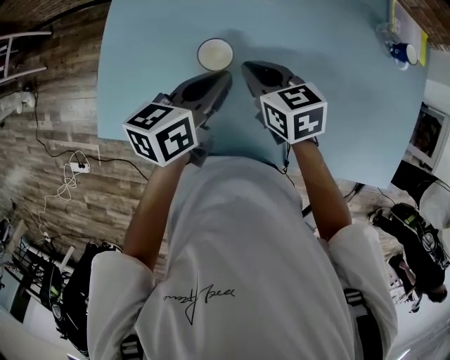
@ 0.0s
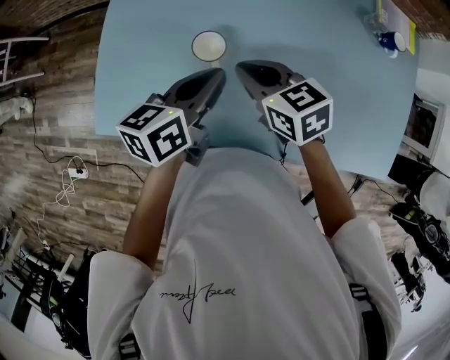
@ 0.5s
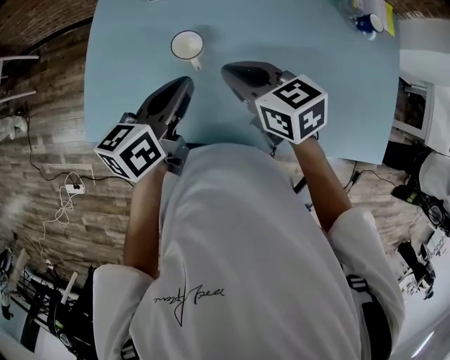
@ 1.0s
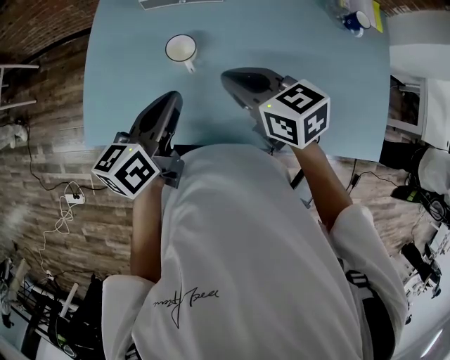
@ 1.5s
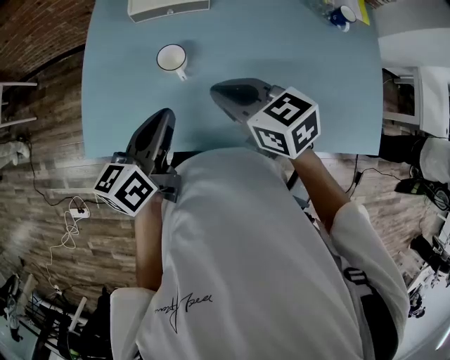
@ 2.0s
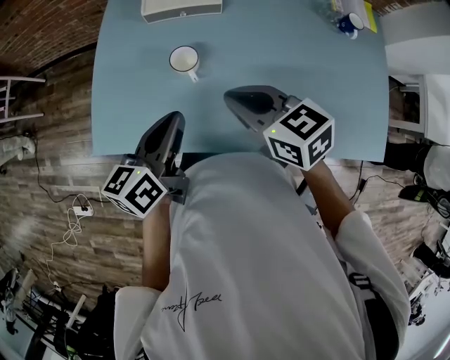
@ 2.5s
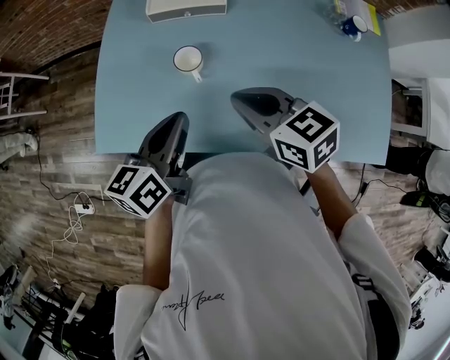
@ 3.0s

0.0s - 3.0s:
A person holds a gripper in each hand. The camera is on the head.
0.0s - 1.5s: The left gripper travels backward by approximately 5 cm. The right gripper moves upward and backward, about 10 cm.
1.5s - 3.0s: The grippers make only small movements.

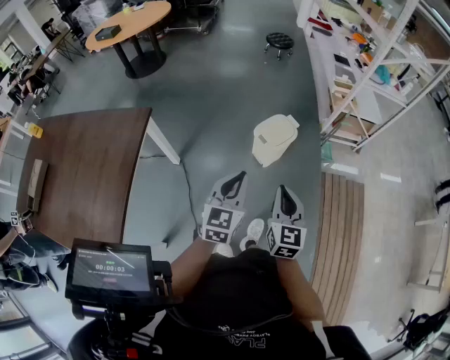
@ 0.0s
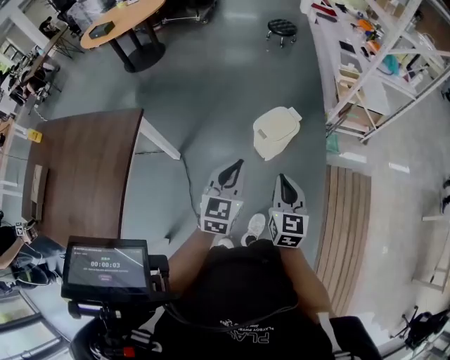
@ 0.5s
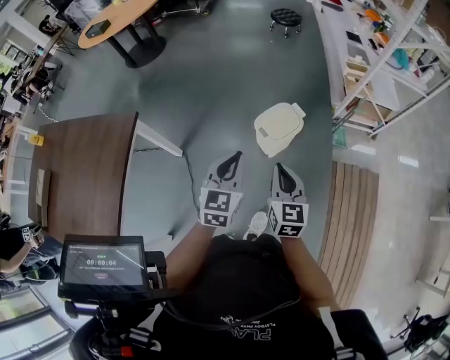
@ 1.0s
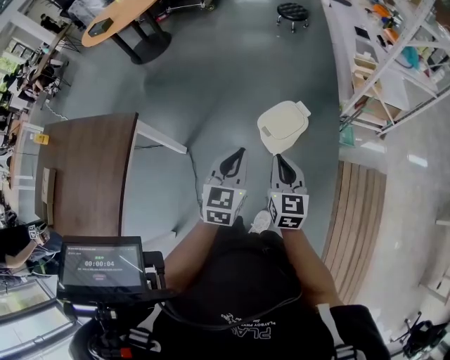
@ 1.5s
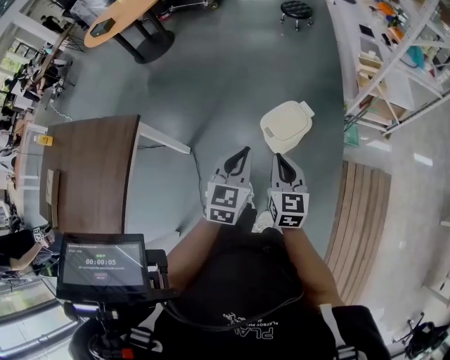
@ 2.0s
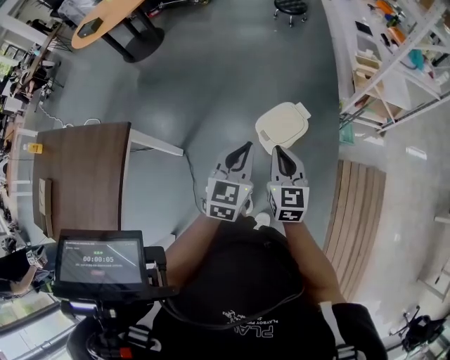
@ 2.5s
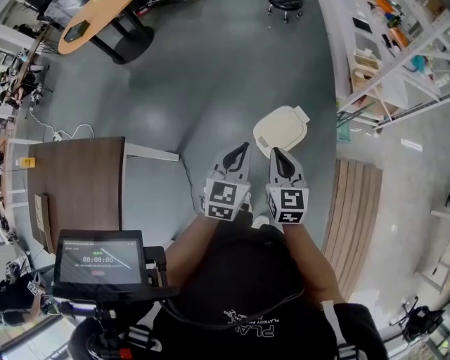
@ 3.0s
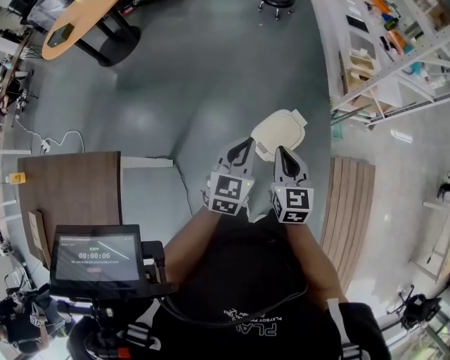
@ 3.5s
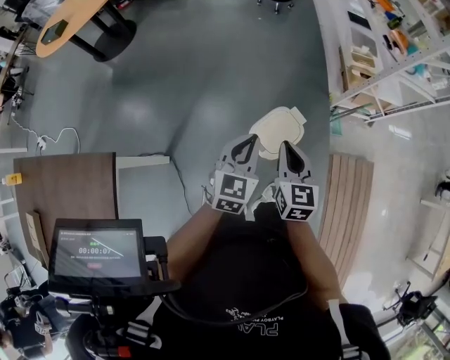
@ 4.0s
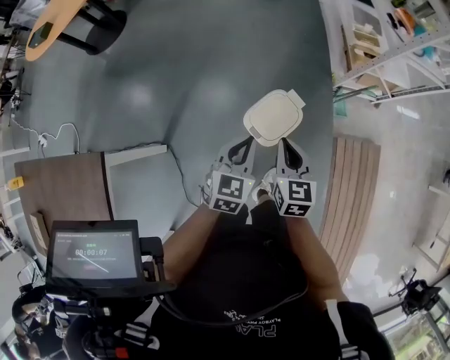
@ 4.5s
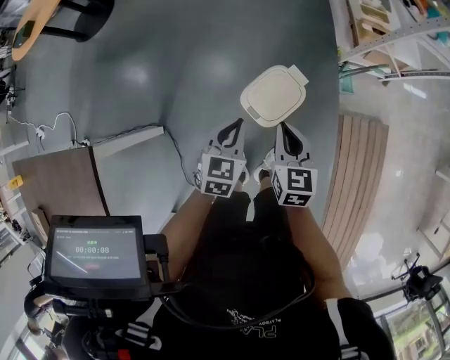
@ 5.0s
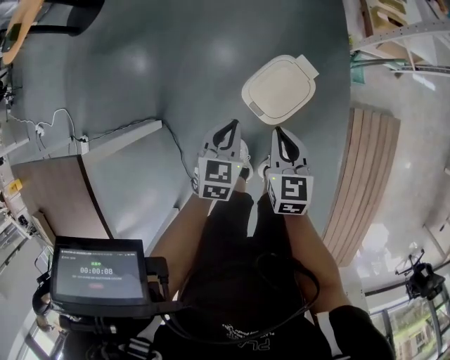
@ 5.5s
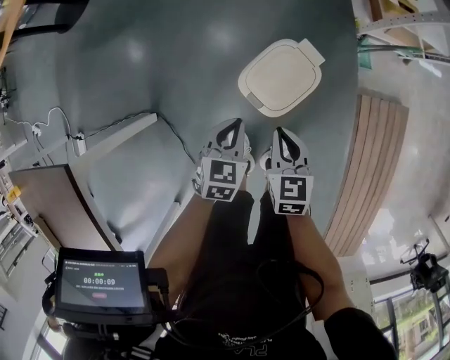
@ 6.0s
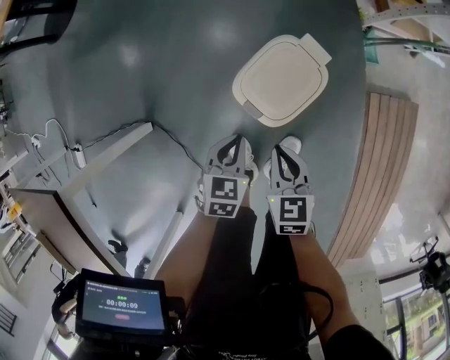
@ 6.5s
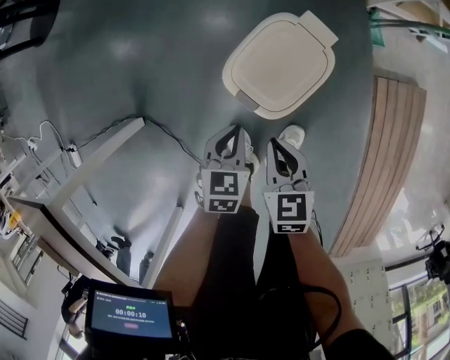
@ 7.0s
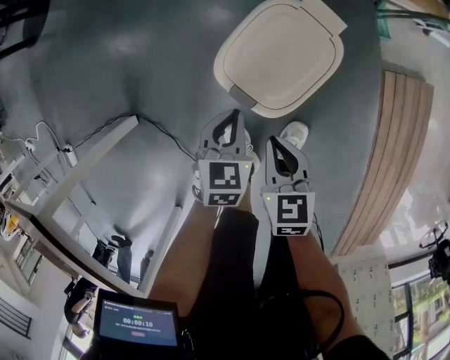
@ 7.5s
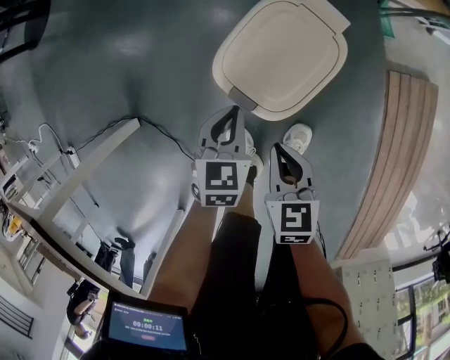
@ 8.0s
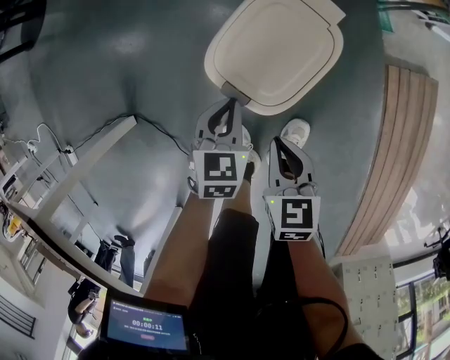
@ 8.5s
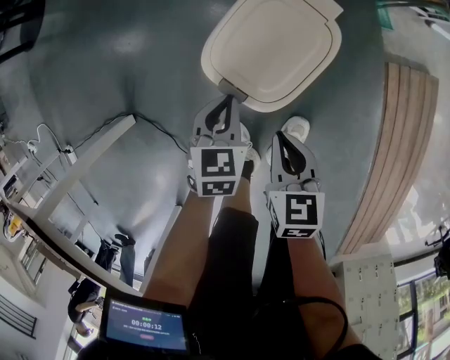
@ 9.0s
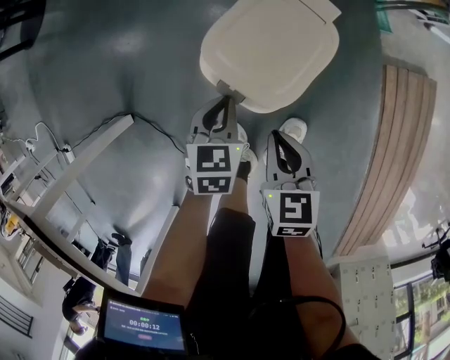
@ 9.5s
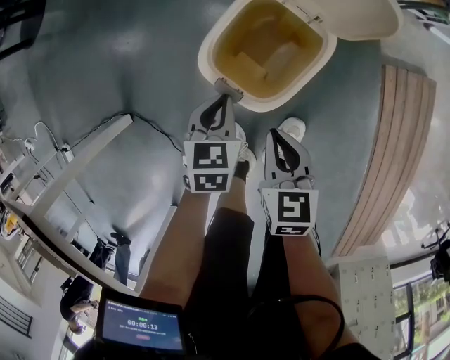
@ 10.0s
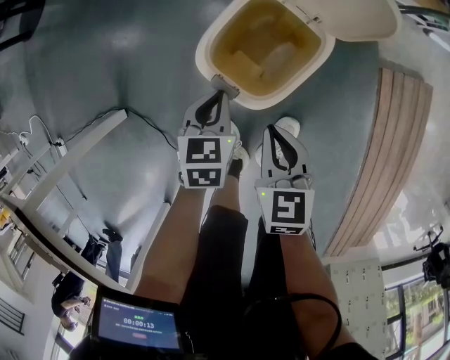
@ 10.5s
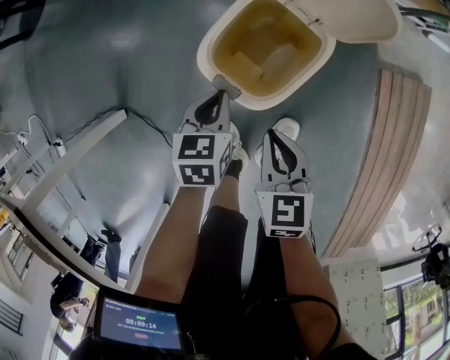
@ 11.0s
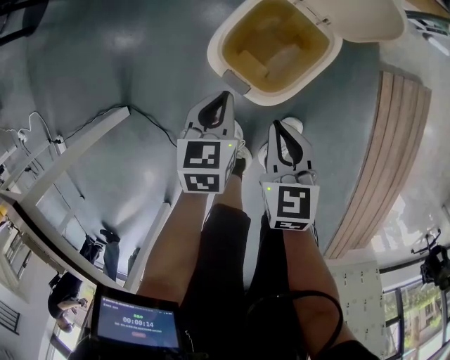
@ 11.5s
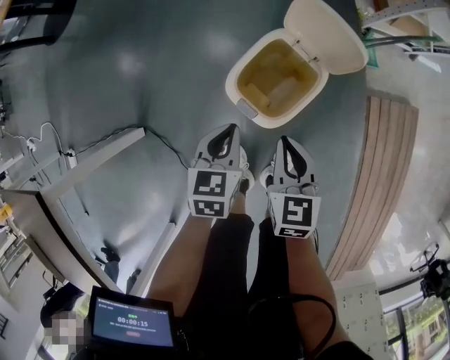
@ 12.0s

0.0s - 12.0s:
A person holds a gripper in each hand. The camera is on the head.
0.0s - 2.0s: The left gripper is displaced forward and to the right by approximately 25 cm. Meanwhile the right gripper goes approximately 25 cm forward.
2.0s - 4.0s: Both grippers move forward, some 20 cm.
4.0s - 6.0s: Both grippers move downward, roughly 30 cm. The left gripper turns by approximately 30 degrees.
6.0s - 8.0s: Both grippers move downward, approximately 20 cm.
8.0s - 10.0s: The grippers stay close to where they were, moving slightly.
10.0s - 12.0s: Both grippers travel together upward, roughly 10 cm.

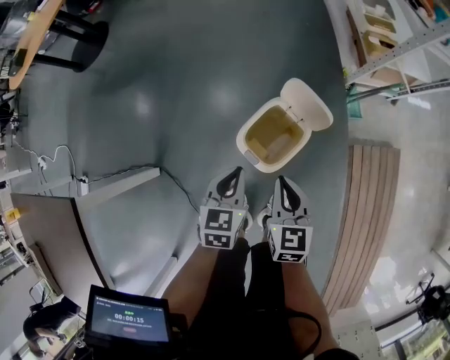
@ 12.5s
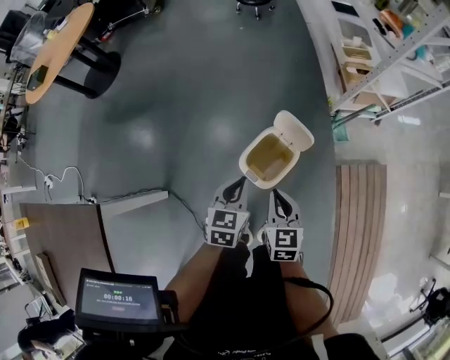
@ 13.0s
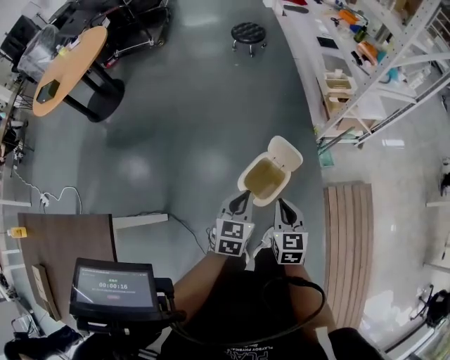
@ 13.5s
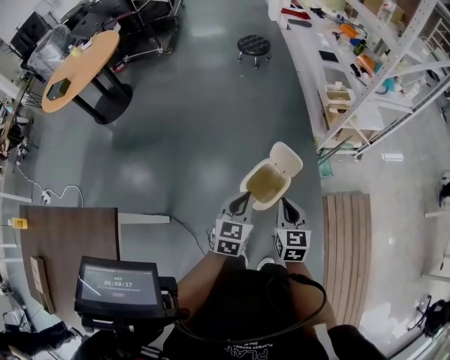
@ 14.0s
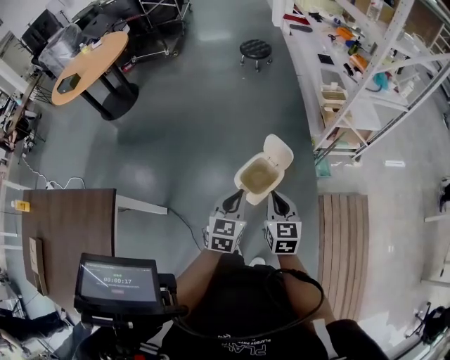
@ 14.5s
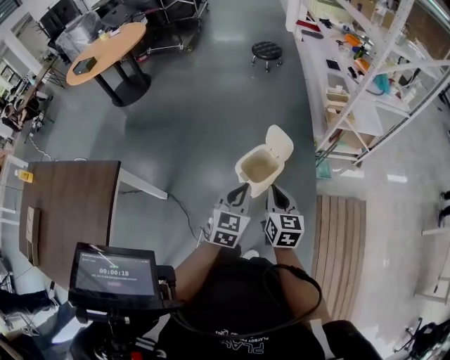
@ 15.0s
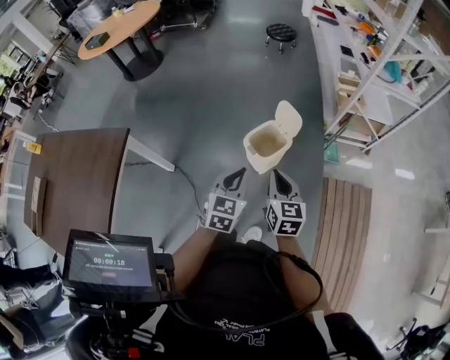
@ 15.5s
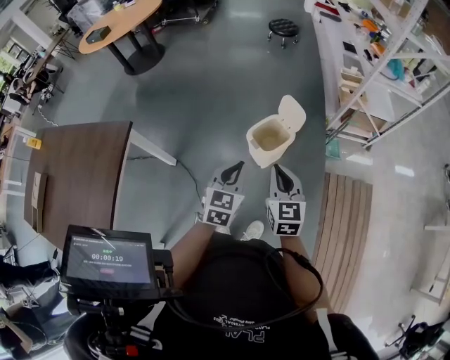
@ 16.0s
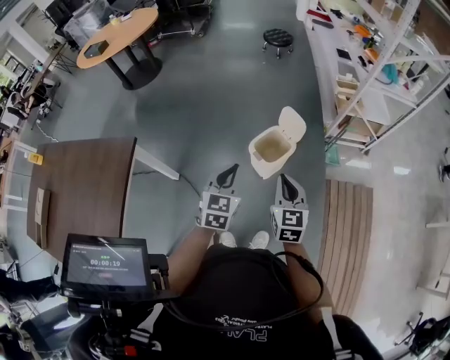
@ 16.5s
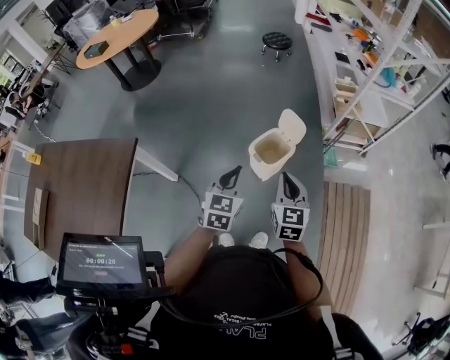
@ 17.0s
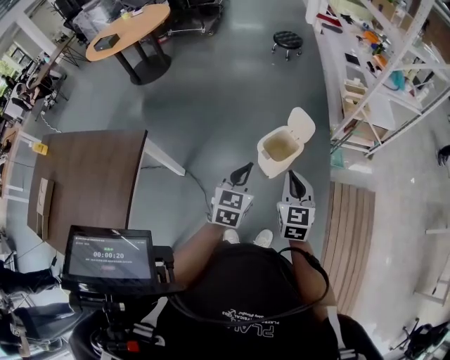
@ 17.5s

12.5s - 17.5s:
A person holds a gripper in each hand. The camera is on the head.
12.5s - 15.0s: The grippers both shift upward and backward by about 30 cm. The left gripper swivels about 20 degrees.
15.0s - 17.5s: The left gripper moves to the left and backward, some 10 cm, while the right gripper is displaced backward, to the left and upward by approximately 10 cm.

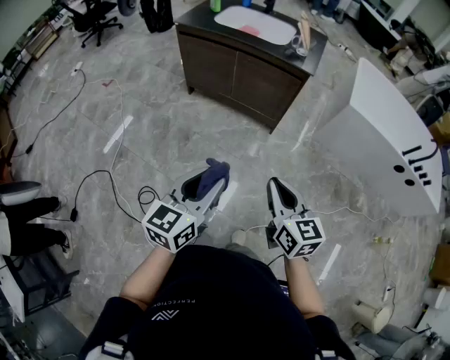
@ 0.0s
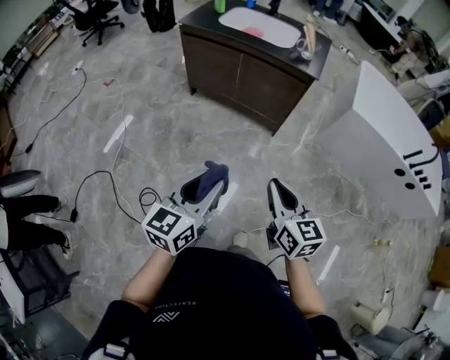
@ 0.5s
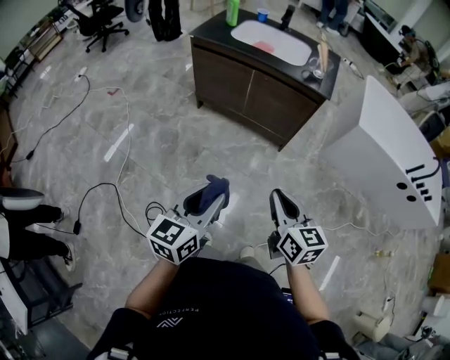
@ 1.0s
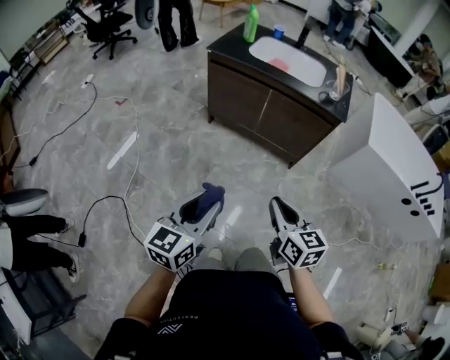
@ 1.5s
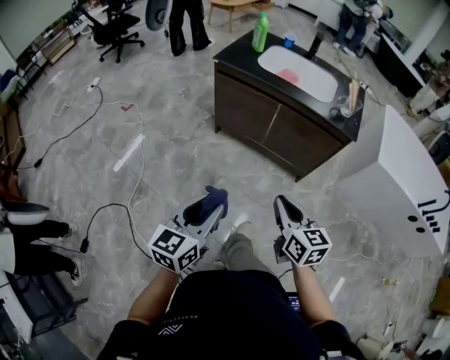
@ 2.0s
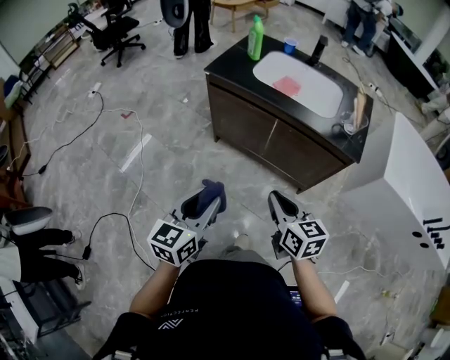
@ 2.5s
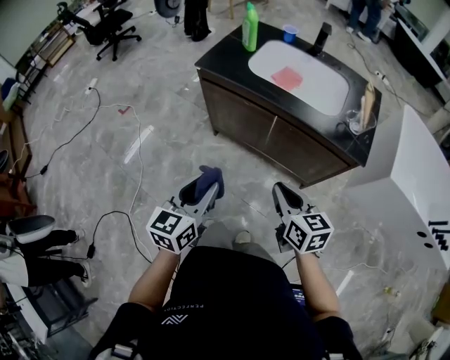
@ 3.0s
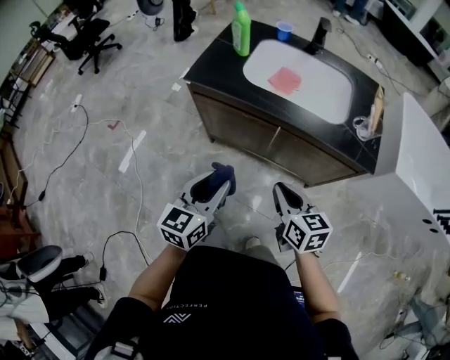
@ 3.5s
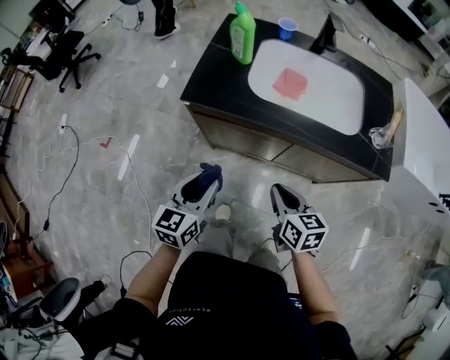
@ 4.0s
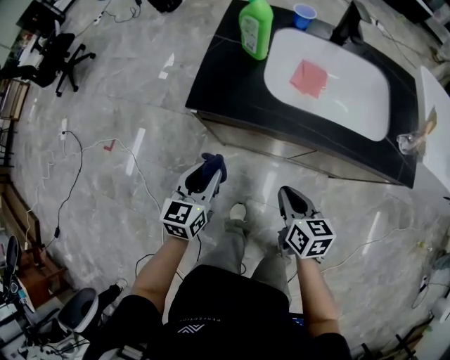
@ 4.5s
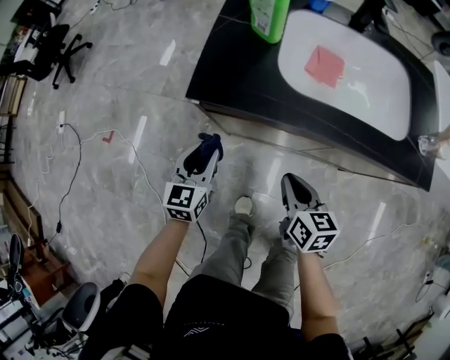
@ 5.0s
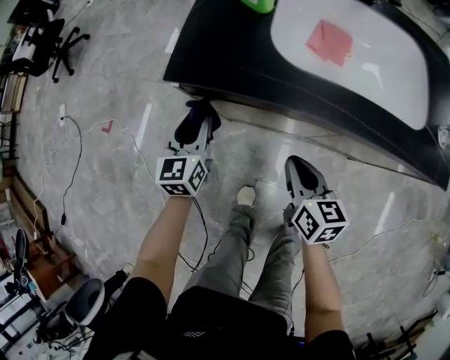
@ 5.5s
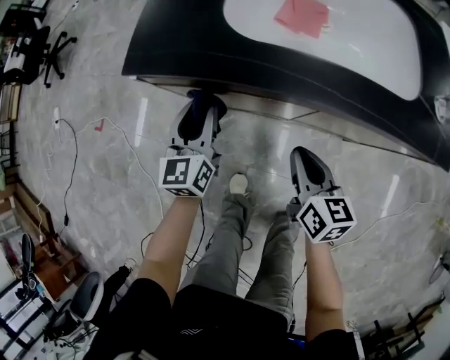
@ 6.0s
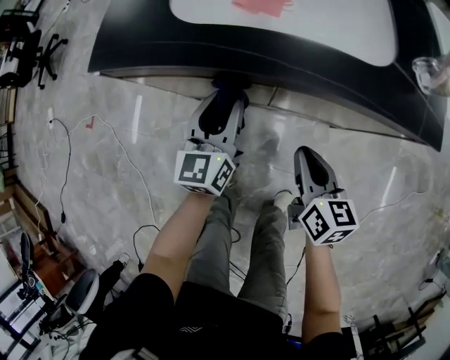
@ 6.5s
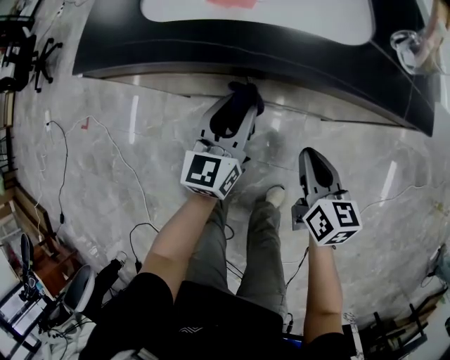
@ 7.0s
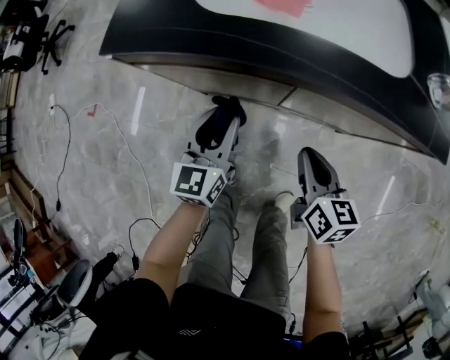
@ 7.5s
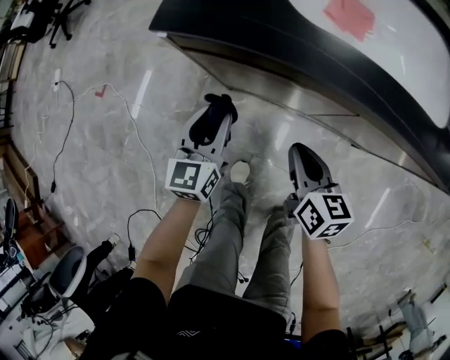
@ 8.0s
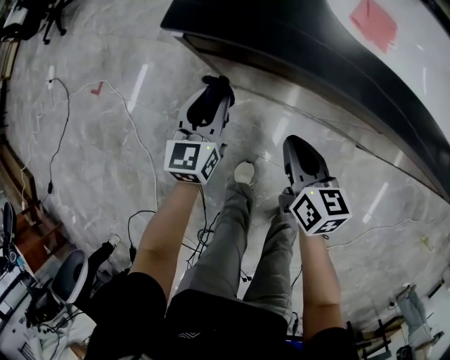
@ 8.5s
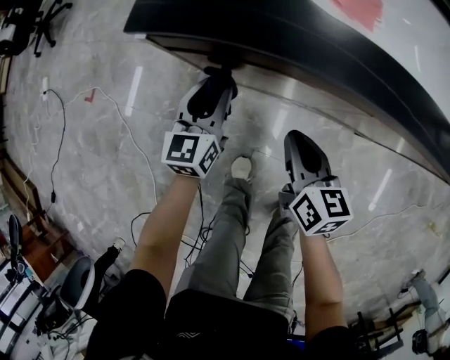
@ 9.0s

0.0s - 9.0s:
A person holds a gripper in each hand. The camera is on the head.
0.0s - 2.0s: The left gripper moves to the left and forward, roughly 25 cm, while the right gripper moves forward and to the left, some 25 cm.
2.0s - 4.5s: The two grippers travel together, forward, about 50 cm. The right gripper changes its angle by roughly 30 degrees.
4.5s - 7.0s: The right gripper shifts roughly 25 cm to the right and downward, while the left gripper moves to the right, roughly 30 cm.
7.0s - 9.0s: The left gripper heads to the left, covering about 25 cm; the right gripper moves to the left and forward, approximately 25 cm.
